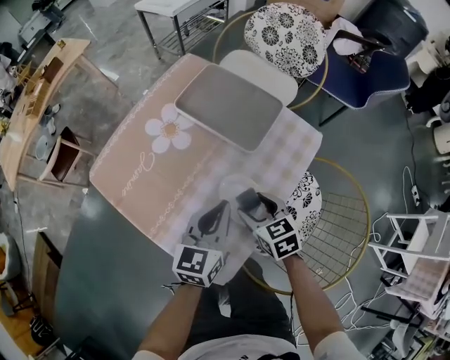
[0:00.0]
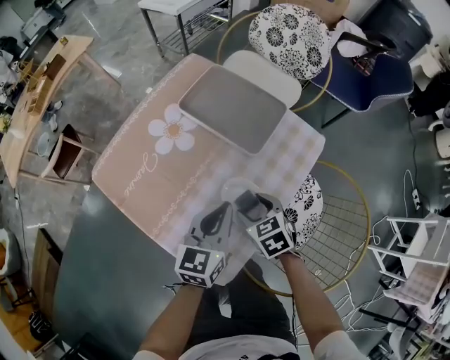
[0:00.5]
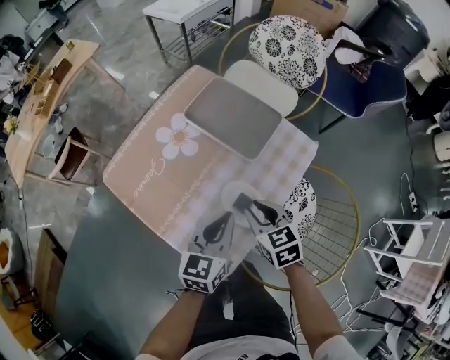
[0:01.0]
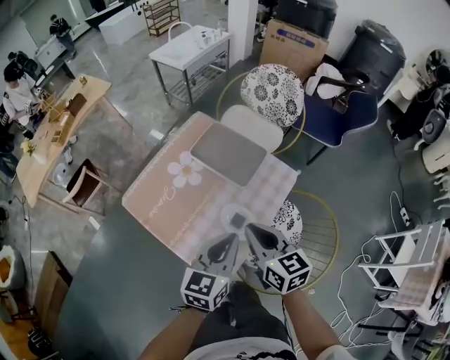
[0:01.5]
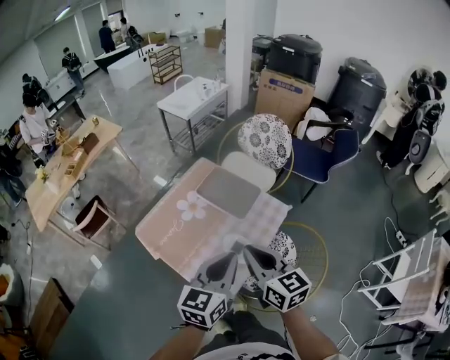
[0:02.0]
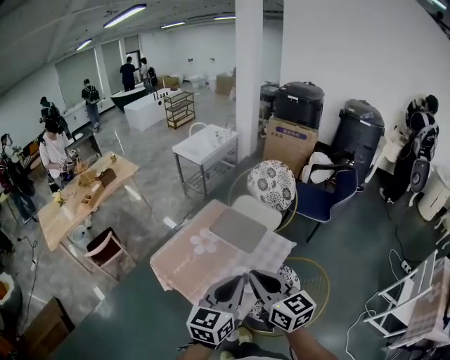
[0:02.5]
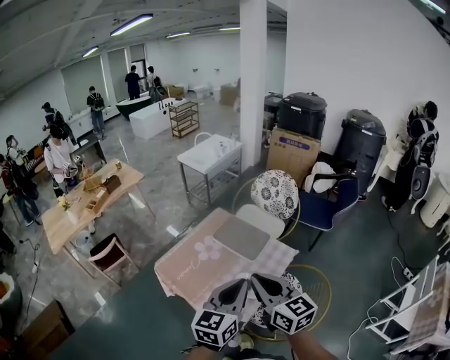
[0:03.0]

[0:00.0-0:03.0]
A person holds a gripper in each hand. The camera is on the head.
0:00.0 to 0:01.5: Both grippers move upward, about 25 cm. The right gripper rotates roughly 20 degrees, and closes.
0:01.5 to 0:03.0: Both grippers travel together upward, about 20 cm.

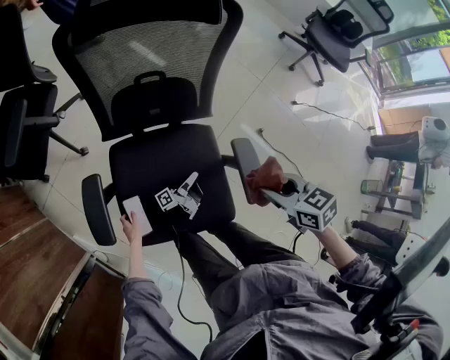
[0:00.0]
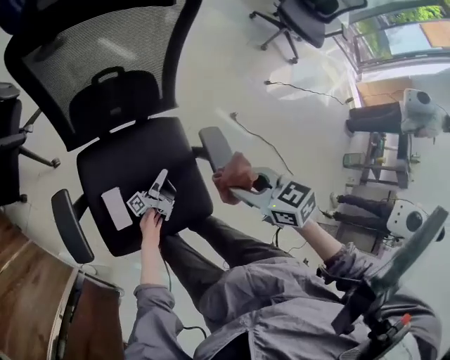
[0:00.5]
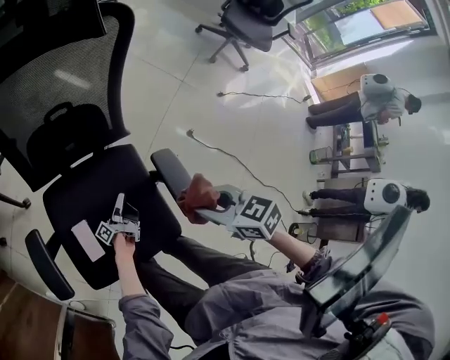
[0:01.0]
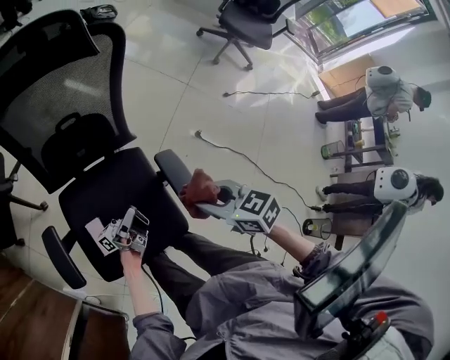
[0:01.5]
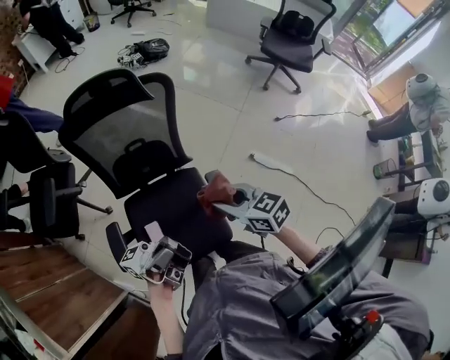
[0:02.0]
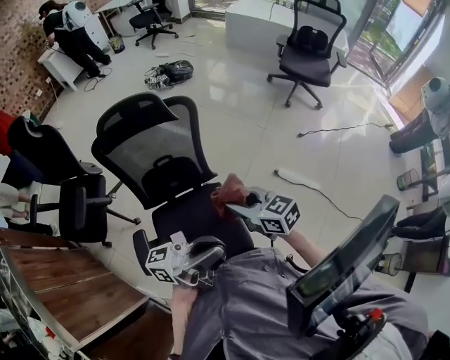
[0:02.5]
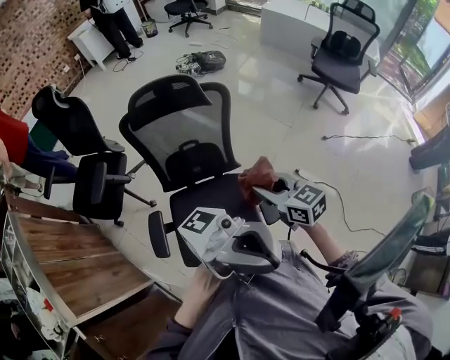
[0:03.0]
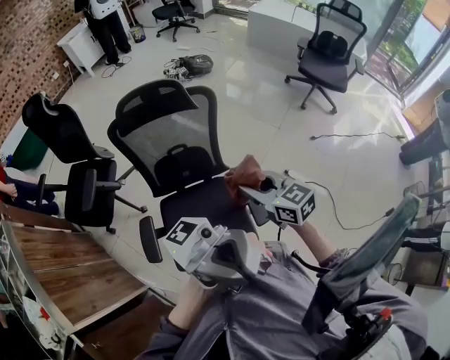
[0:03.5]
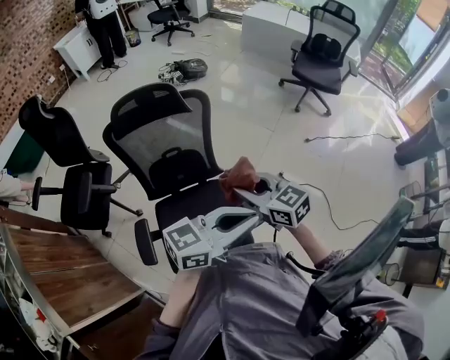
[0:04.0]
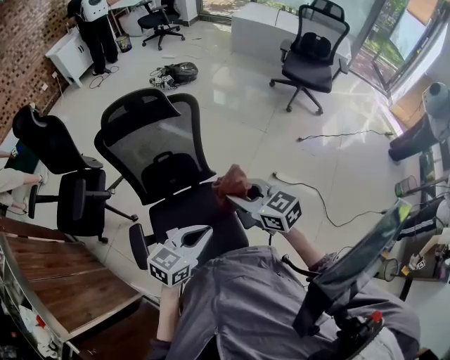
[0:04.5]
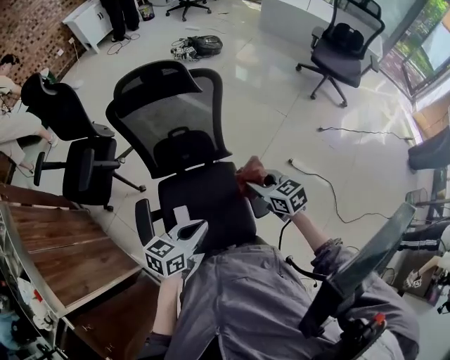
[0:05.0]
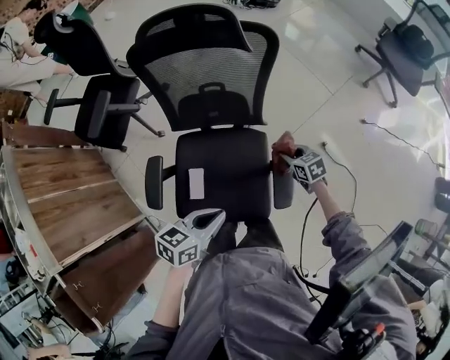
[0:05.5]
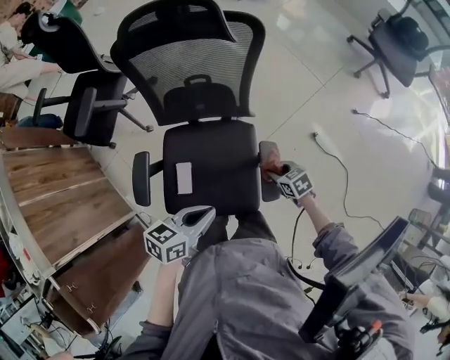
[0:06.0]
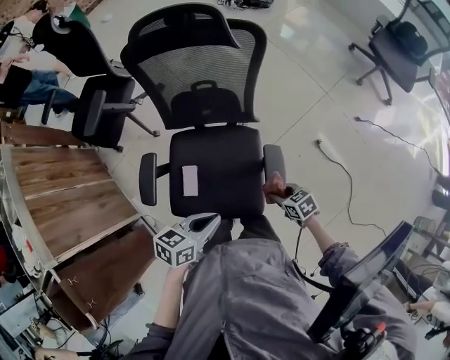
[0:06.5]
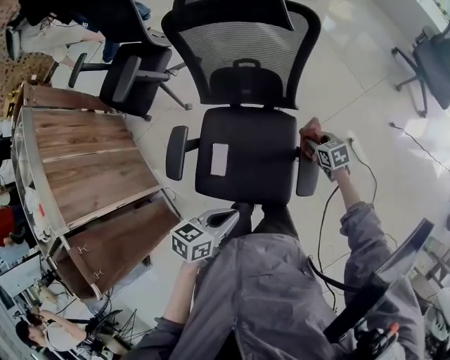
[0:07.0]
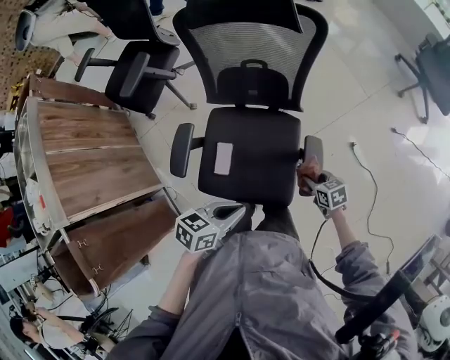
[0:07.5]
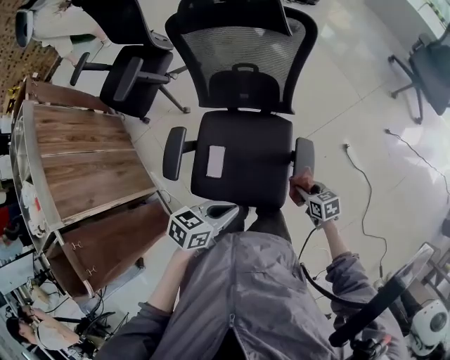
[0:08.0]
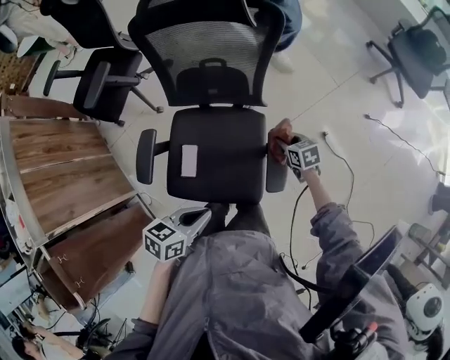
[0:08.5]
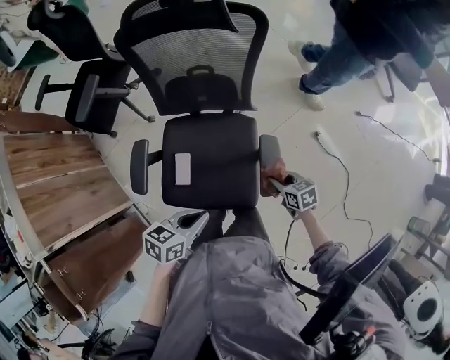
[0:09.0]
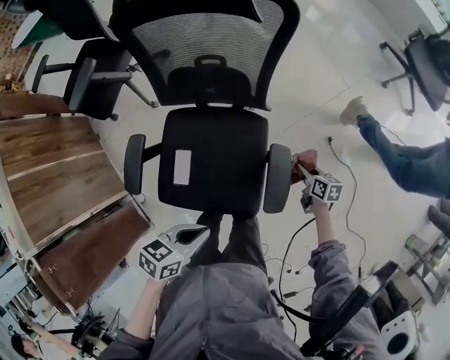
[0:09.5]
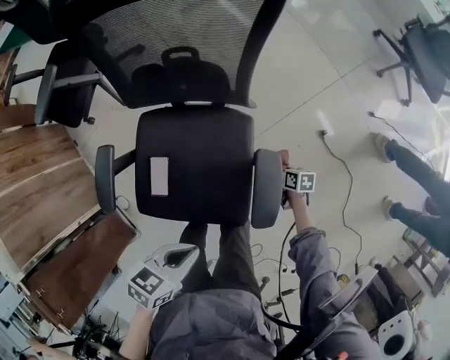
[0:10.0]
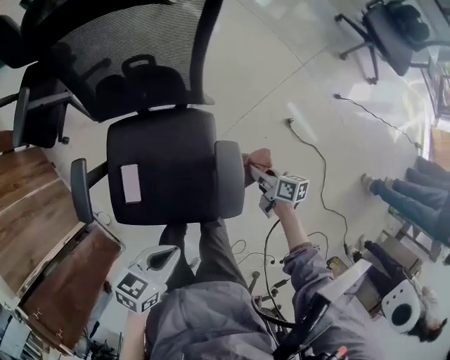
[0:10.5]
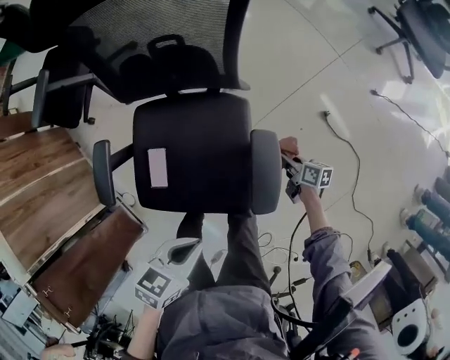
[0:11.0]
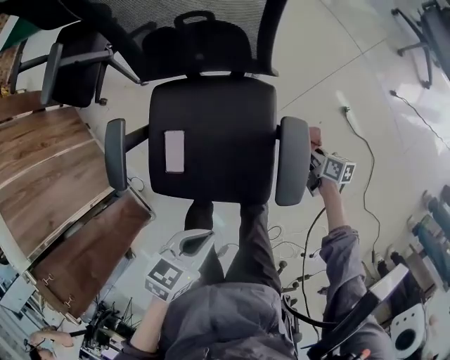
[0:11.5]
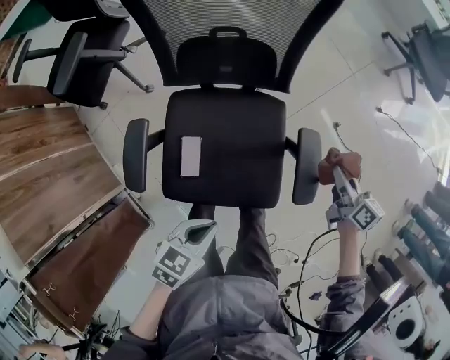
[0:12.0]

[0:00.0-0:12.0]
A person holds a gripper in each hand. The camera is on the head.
0:00.0 to 0:02.0: The right gripper travels upward by some 15 cm. Meanwhile the left gripper is displaced upward by some 60 cm, and points its fingers about 40 degrees further upward.
0:02.0 to 0:04.0: The right gripper goes roughly 10 cm upward. The left gripper travels upward and back again, approximately 25 cm each way, and tips its fingers downward by approximately 50 degrees.
0:04.0 to 0:06.0: Both grippers move downward, about 30 cm. The right gripper tips its fingers downward by roughly 40 degrees. The left gripper tilts its fingers about 30 degrees downward.
0:06.0 to 0:08.0: The right gripper ends up about 10 cm from where it was. Meanwhile the left gripper moves some 5 cm.
0:08.0 to 0:10.0: The left gripper heads downward, covering approximately 10 cm; the right gripper shifts approximately 25 cm downward, and rotates roughly 30 degrees.
0:10.0 to 0:12.0: The left gripper moves about 10 cm. Meanwhile the right gripper moves up and down over about 30 cm, changing direction 2 times, and changes its angle by roughly 30 degrees.

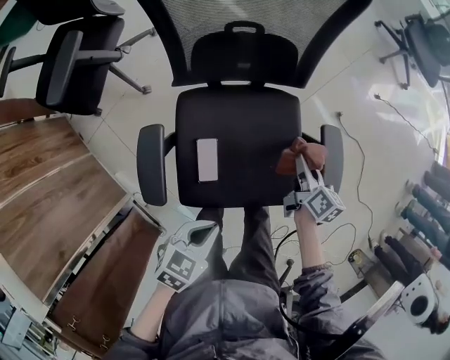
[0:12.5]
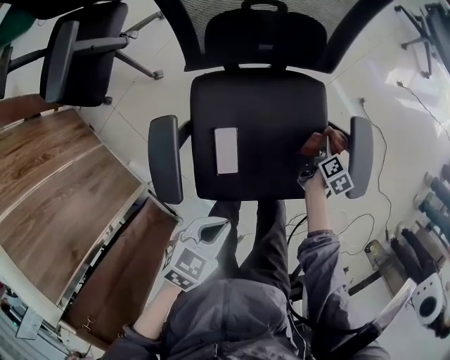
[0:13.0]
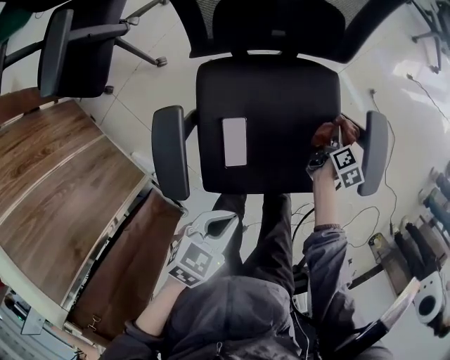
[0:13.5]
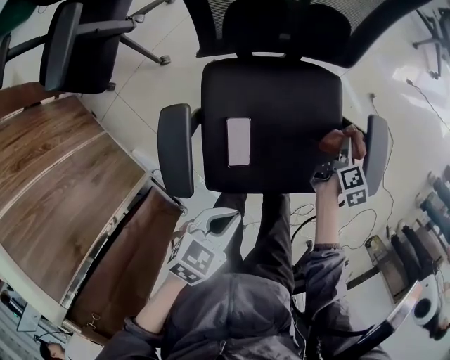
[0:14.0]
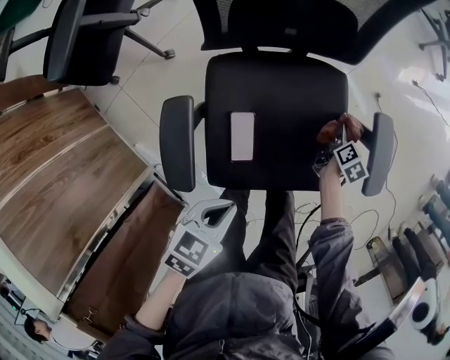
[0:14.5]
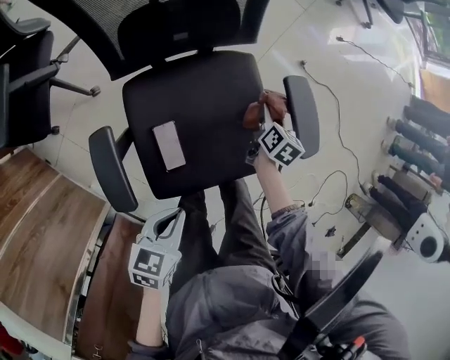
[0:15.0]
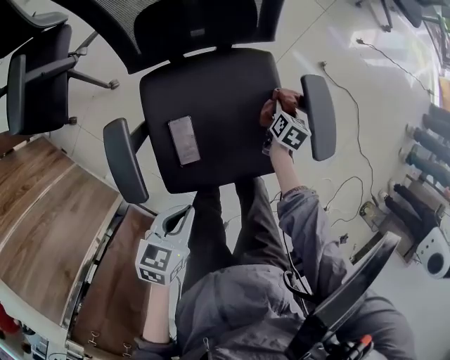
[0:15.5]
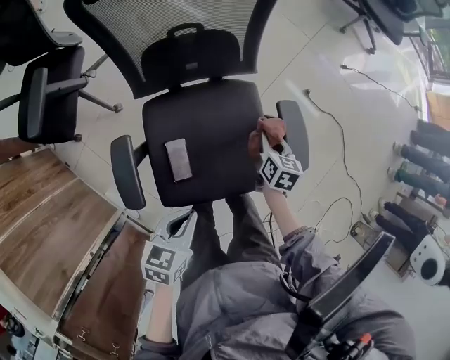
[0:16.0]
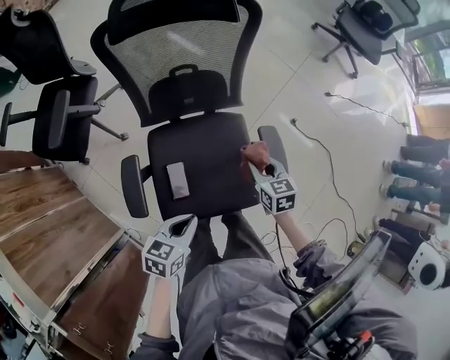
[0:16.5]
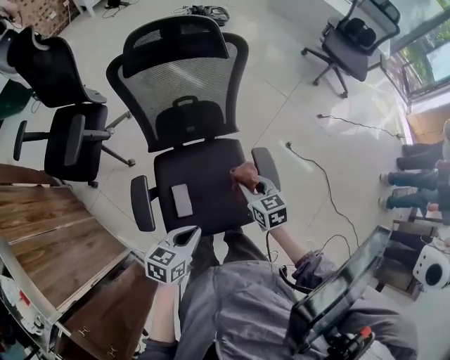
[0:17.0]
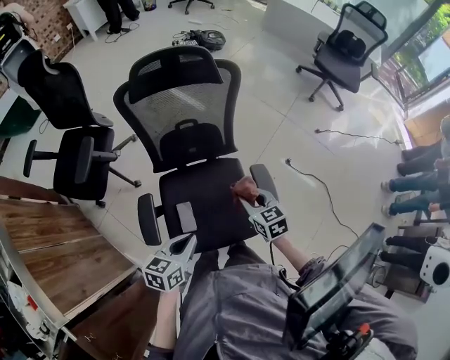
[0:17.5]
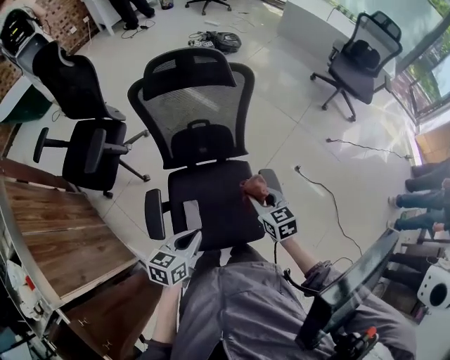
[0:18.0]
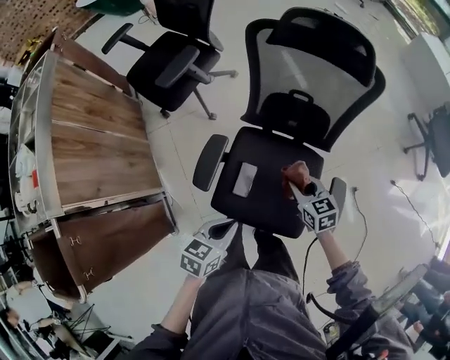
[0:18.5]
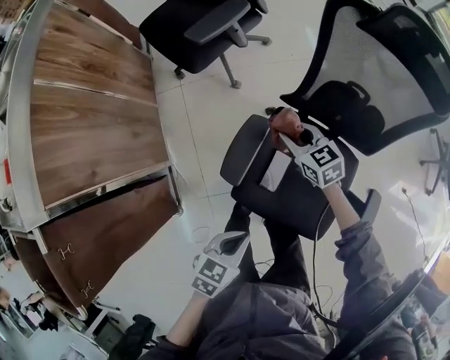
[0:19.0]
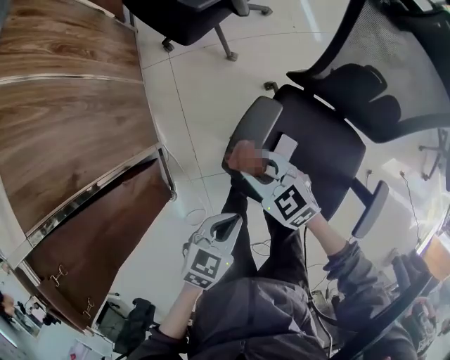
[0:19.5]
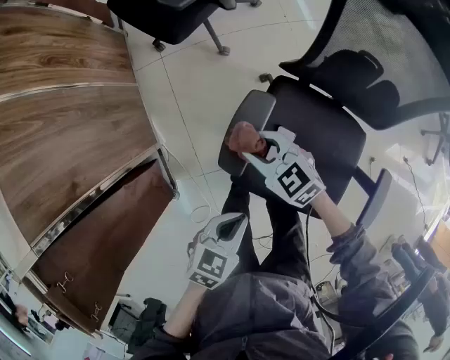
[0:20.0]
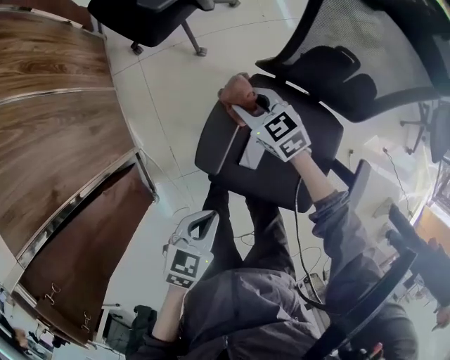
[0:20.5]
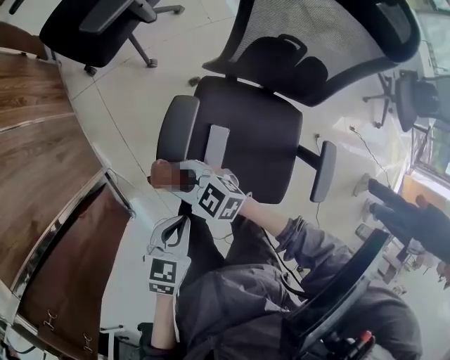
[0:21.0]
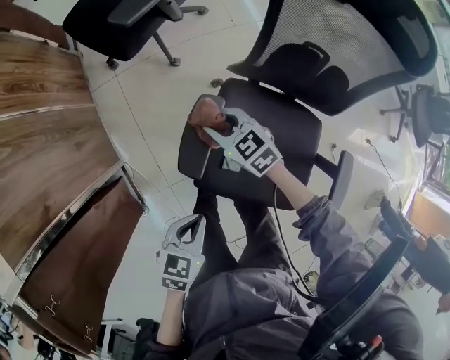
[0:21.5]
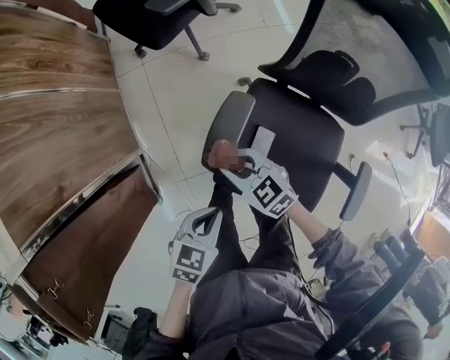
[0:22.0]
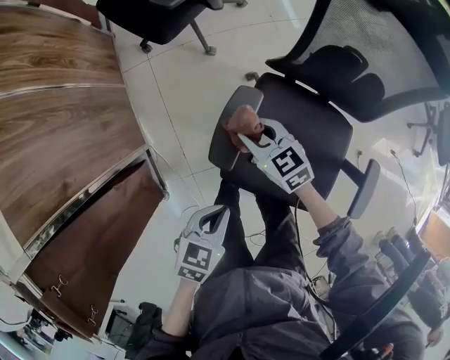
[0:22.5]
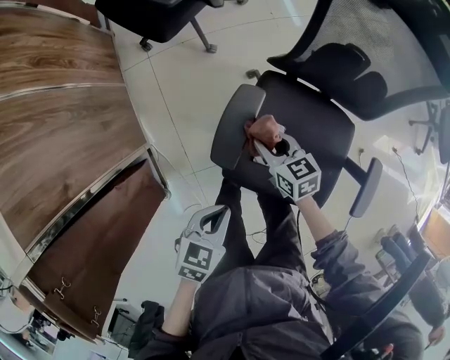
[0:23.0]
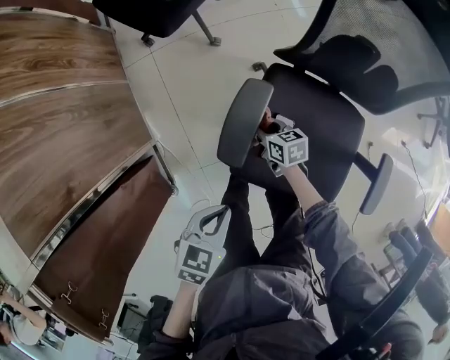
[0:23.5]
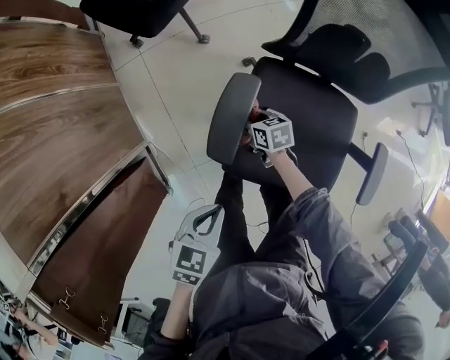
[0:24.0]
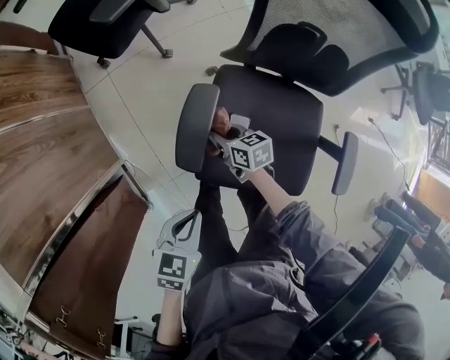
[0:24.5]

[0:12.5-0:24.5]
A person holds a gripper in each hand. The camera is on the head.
0:12.5 to 0:14.5: The left gripper changes place by some 5 cm. The right gripper moves up and down over about 15 cm, changing direction 2 times, and turns by approximately 30 degrees.
0:14.5 to 0:16.5: The right gripper moves up and down over about 25 cm, changing direction 2 times, and rotates approximately 50 degrees. The left gripper moves upward, approximately 10 cm.
0:16.5 to 0:18.5: The left gripper ends up approximately 5 cm from where it was, and rotates roughly 30 degrees. The right gripper reaches some 10 cm upward, then returns, and turns by roughly 40 degrees.
0:18.5 to 0:20.5: The right gripper changes place by approximately 35 cm, and swivels roughly 30 degrees; the left gripper changes place by roughly 20 cm.
0:22.5 to 0:24.5: The right gripper moves downward, about 10 cm, and swivels some 40 degrees.
